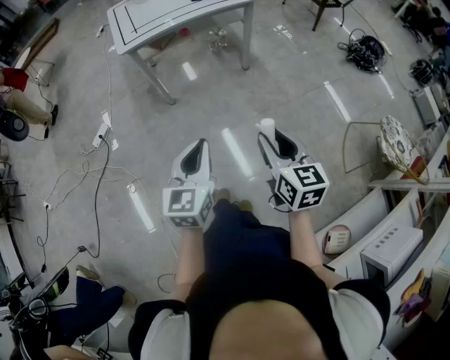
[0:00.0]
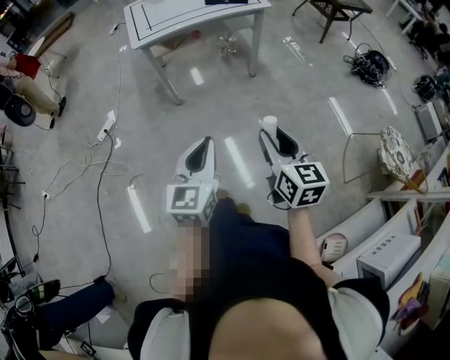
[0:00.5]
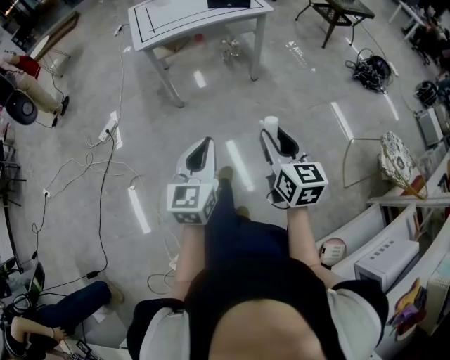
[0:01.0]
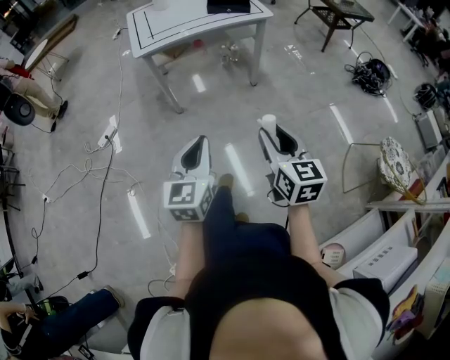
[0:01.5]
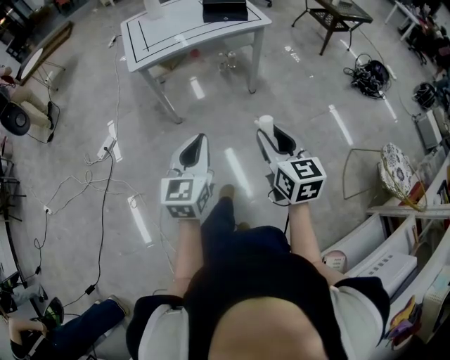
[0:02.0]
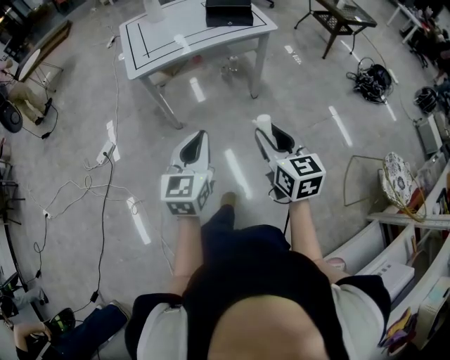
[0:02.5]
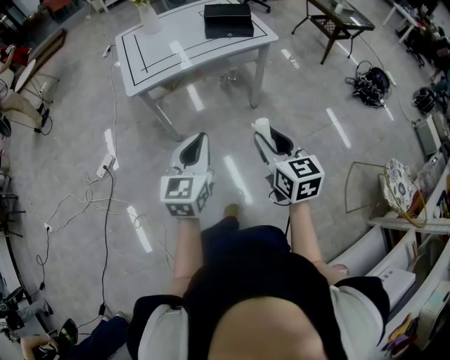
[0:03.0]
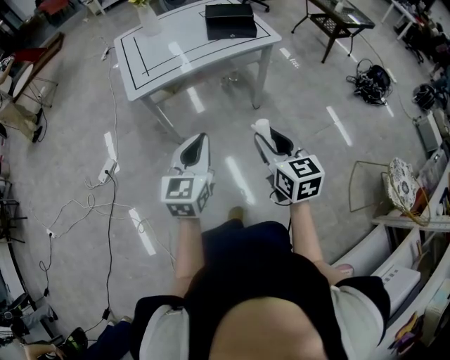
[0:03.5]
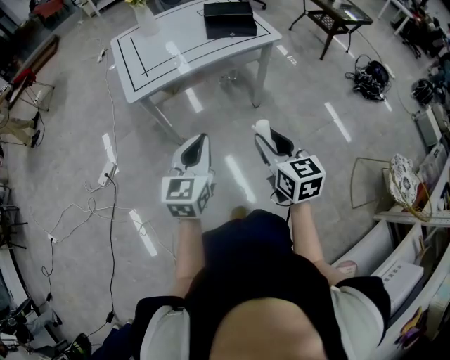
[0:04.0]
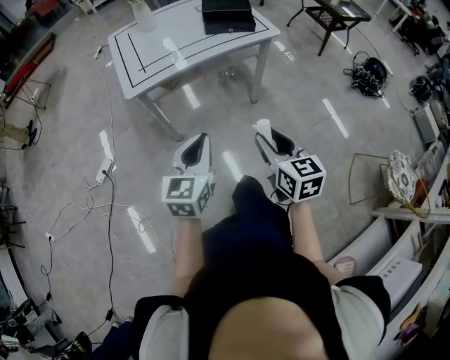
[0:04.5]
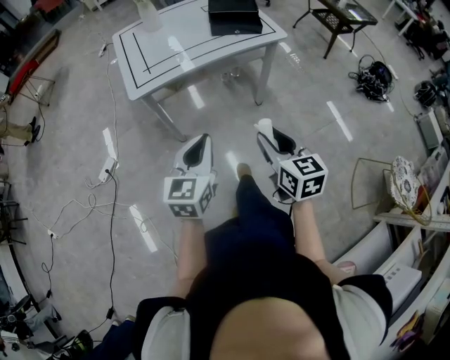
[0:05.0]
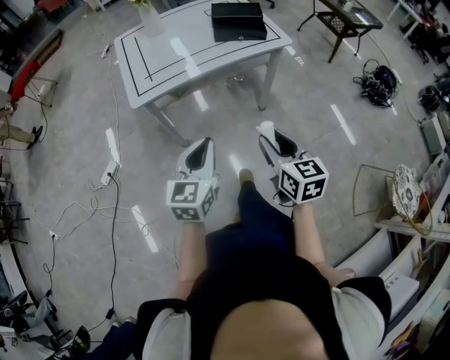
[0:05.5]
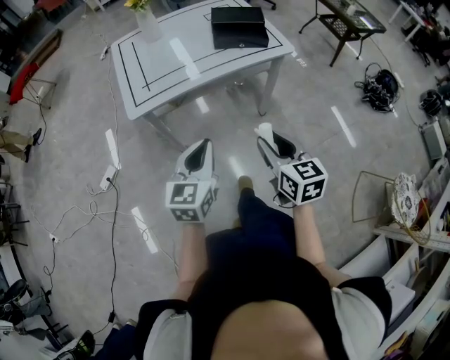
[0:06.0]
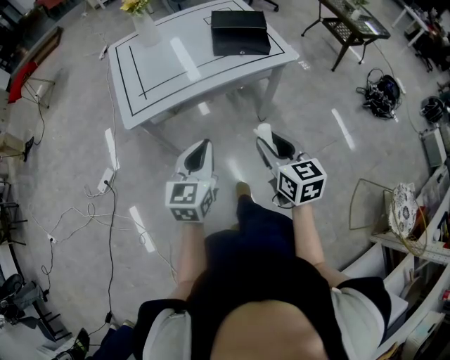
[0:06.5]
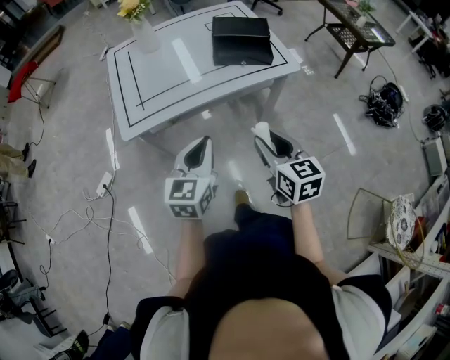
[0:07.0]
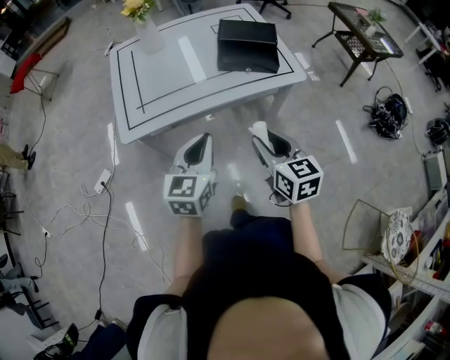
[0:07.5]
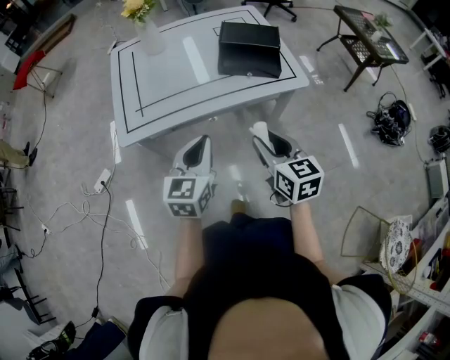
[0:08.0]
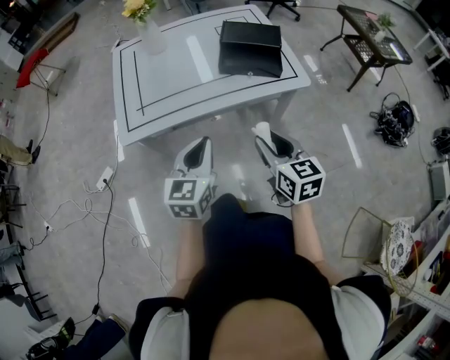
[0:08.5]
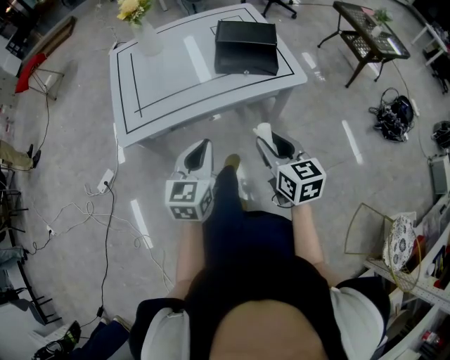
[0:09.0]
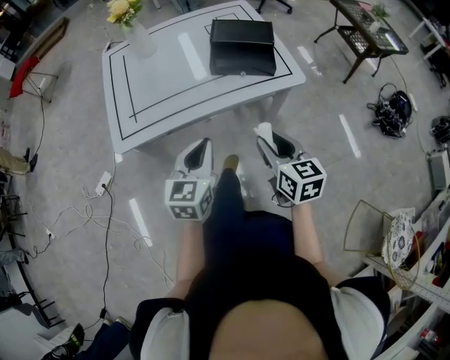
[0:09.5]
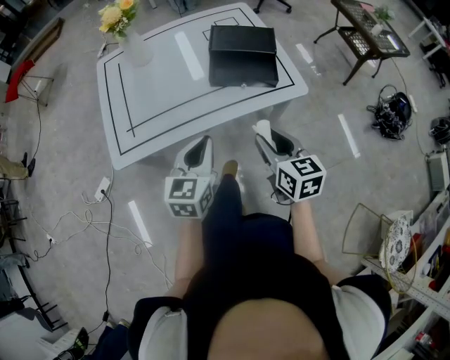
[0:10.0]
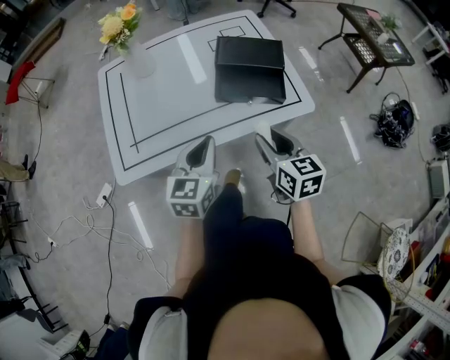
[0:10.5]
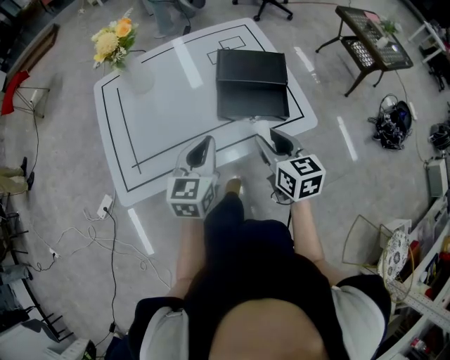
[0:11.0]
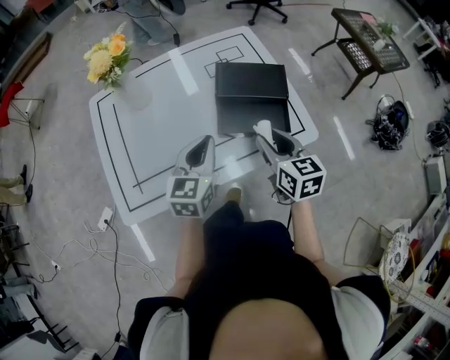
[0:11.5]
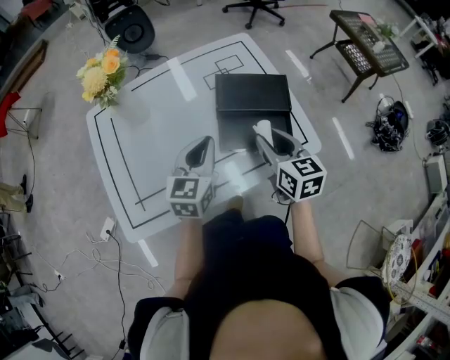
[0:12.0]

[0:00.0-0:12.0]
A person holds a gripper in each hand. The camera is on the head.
0:00.0 to 0:02.0: The grippers both shift forward by approximately 10 cm.
0:02.0 to 0:04.0: Both grippers travel together forward, approximately 20 cm.
0:04.0 to 0:06.0: Both grippers travel together forward, roughly 10 cm.
0:06.0 to 0:08.0: The grippers both shift forward by roughly 15 cm.
0:08.0 to 0:10.0: Both grippers move forward, approximately 10 cm.
0:10.0 to 0:12.0: The two grippers go about 25 cm forward.

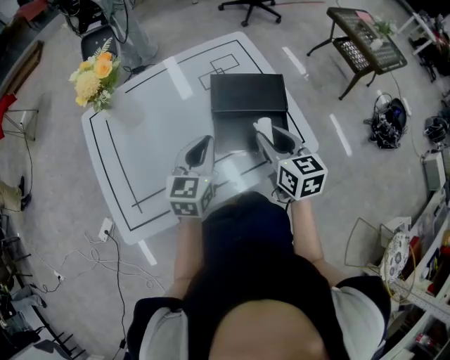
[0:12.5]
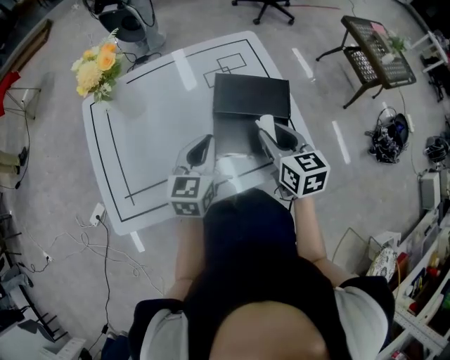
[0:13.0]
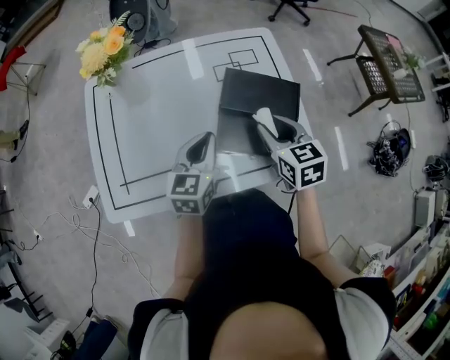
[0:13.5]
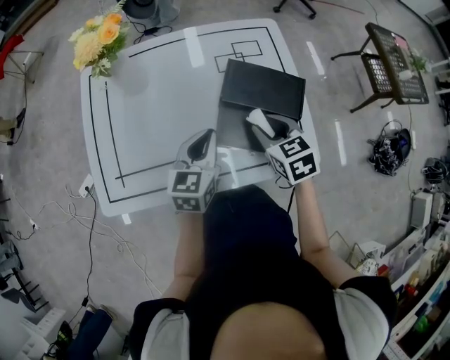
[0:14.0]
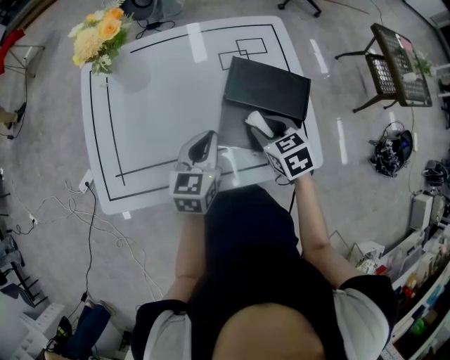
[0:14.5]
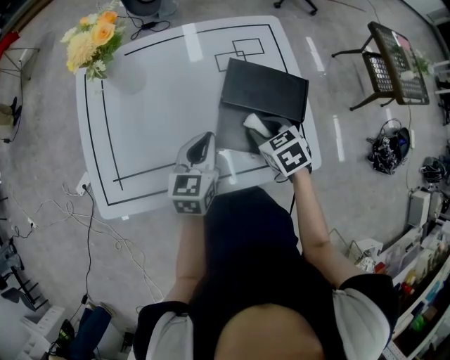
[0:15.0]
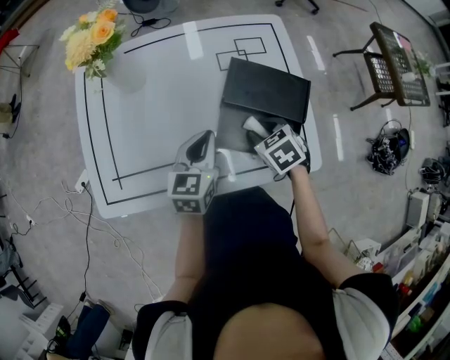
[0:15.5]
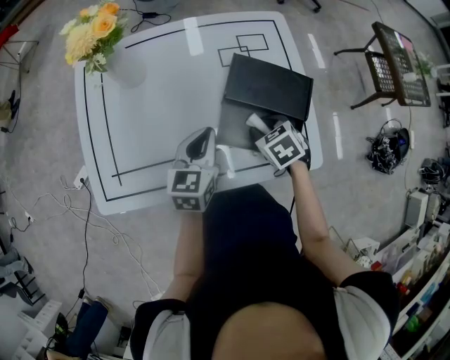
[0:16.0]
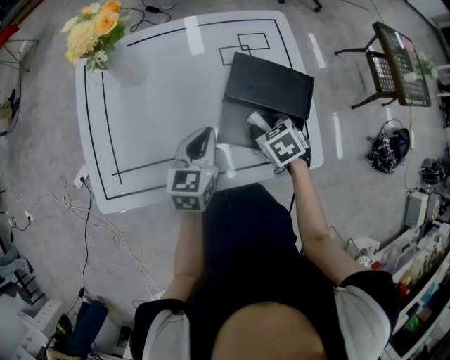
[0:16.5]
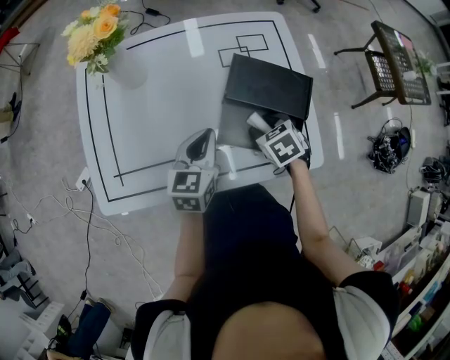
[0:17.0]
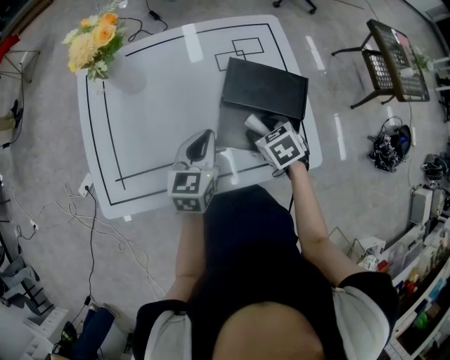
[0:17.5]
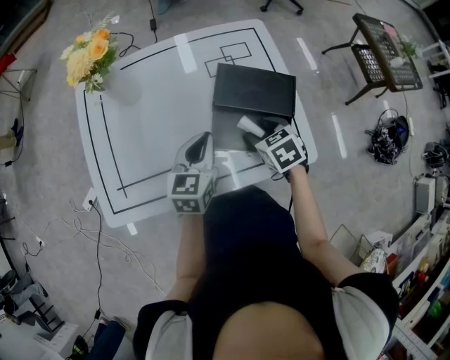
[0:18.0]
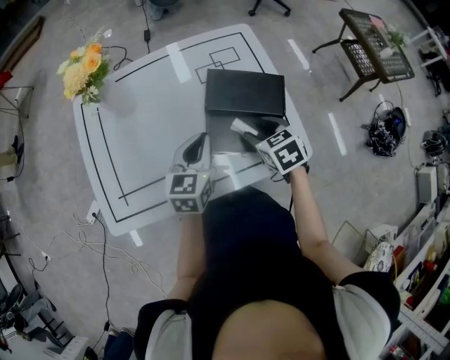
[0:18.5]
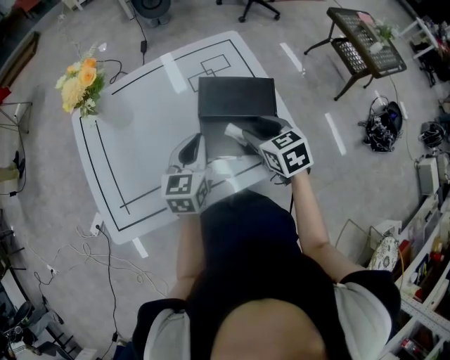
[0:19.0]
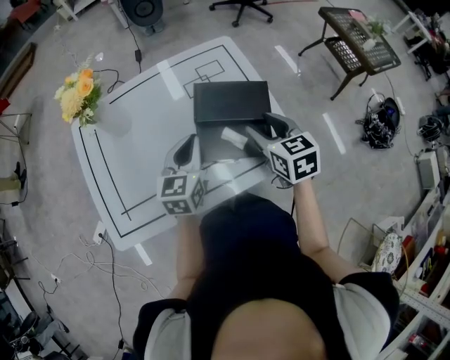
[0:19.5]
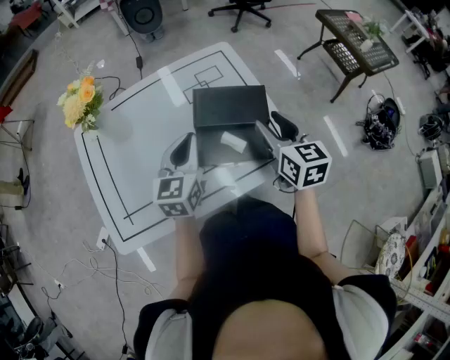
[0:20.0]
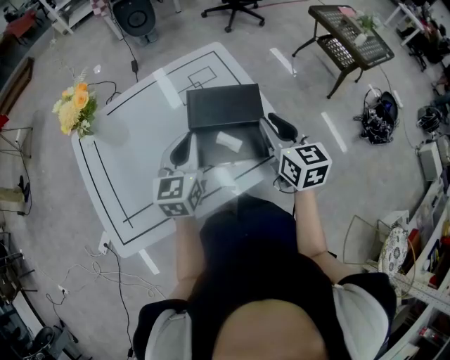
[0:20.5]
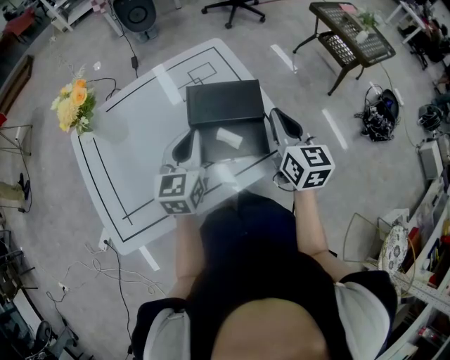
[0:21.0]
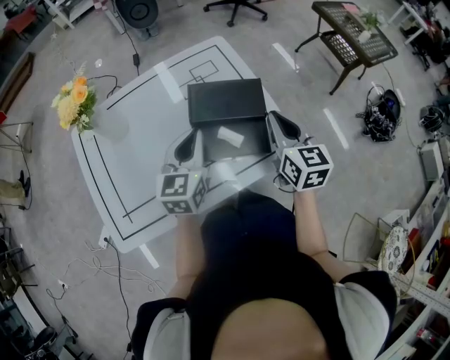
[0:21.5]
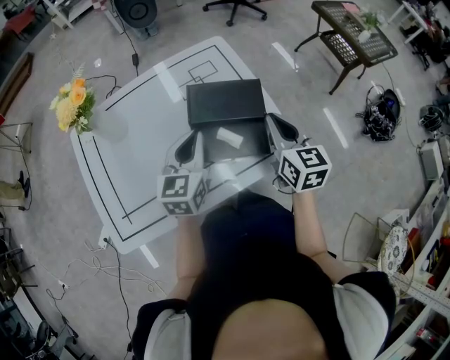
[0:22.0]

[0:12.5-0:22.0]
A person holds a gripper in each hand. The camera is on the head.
0:12.5 to 0:14.5: The left gripper heads downward, covering some 5 cm, while the right gripper shifts approximately 10 cm downward, and swivels about 40 degrees.
0:14.5 to 0:16.5: The right gripper moves downward, about 5 cm.
0:16.5 to 0:18.0: The right gripper opens up.
0:18.0 to 0:20.0: The right gripper goes some 20 cm upward and to the right, and tips its fingers upward by some 30 degrees. The left gripper travels upward by approximately 5 cm.
0:20.0 to 0:22.0: The right gripper closes up.

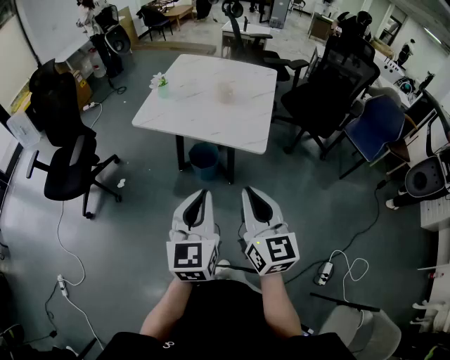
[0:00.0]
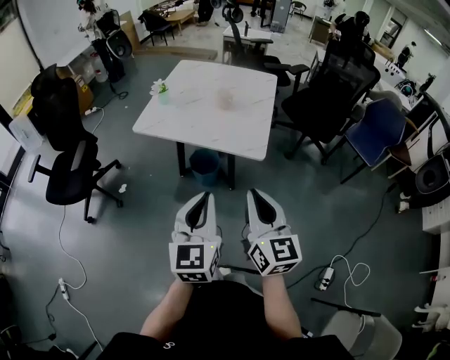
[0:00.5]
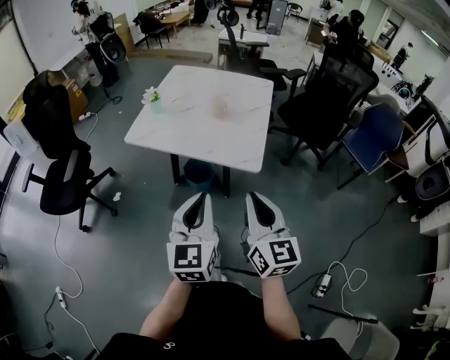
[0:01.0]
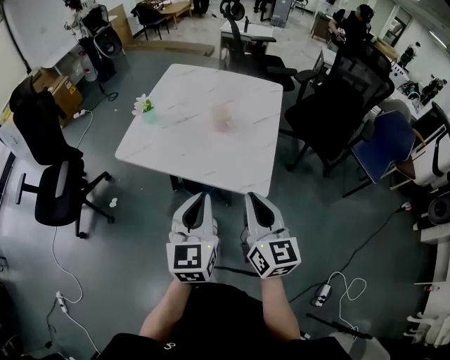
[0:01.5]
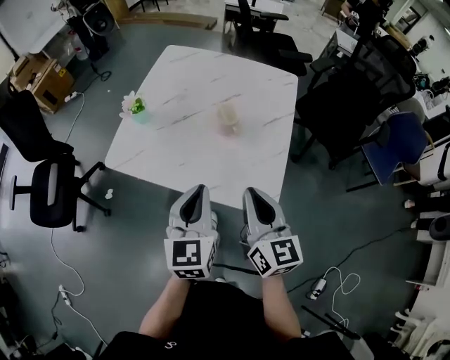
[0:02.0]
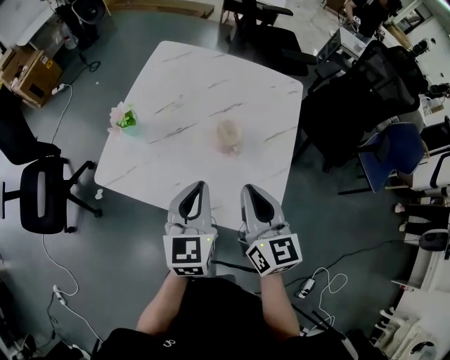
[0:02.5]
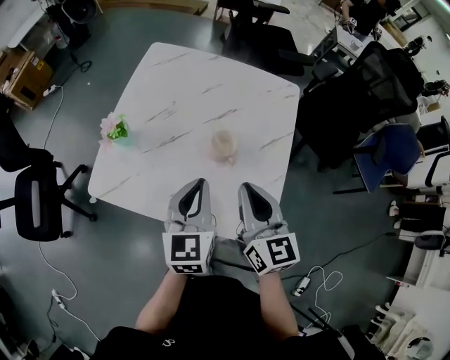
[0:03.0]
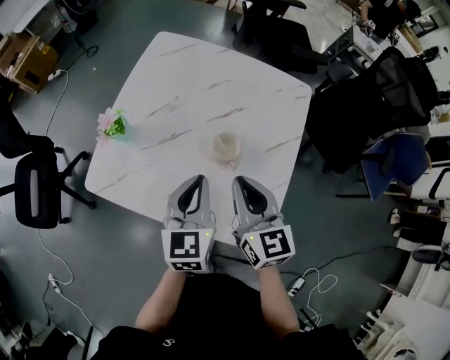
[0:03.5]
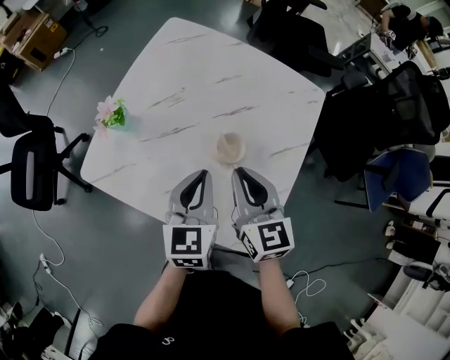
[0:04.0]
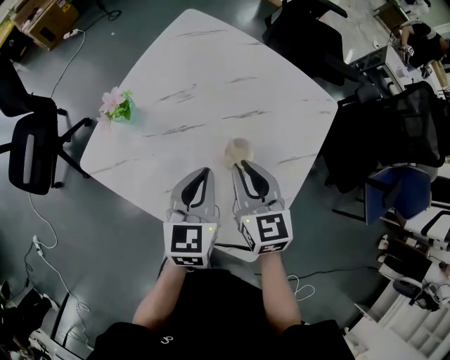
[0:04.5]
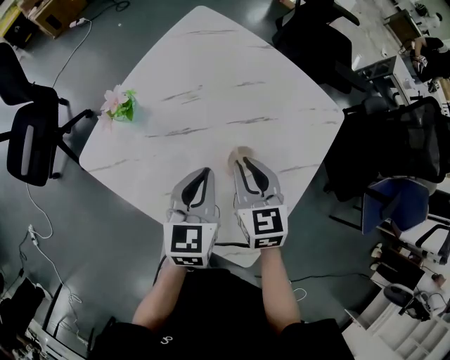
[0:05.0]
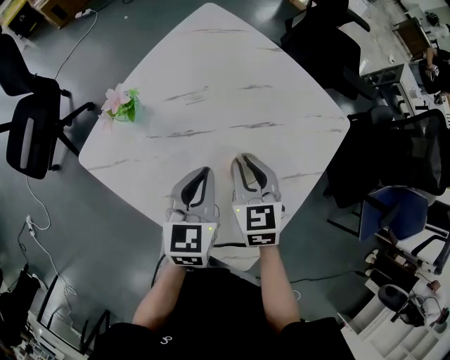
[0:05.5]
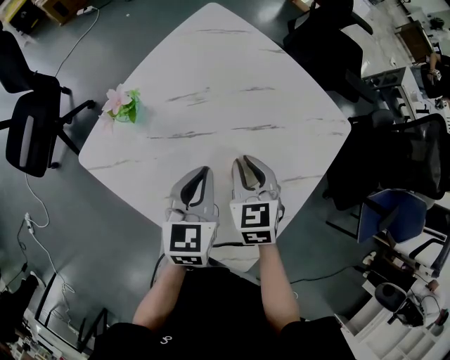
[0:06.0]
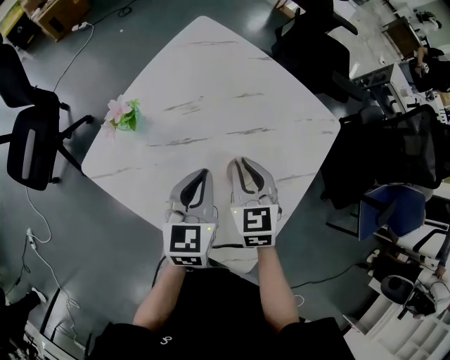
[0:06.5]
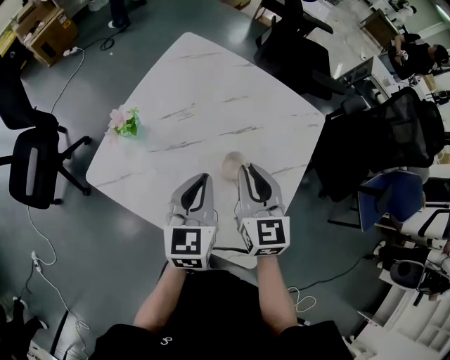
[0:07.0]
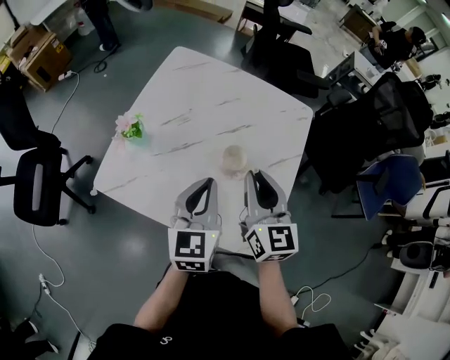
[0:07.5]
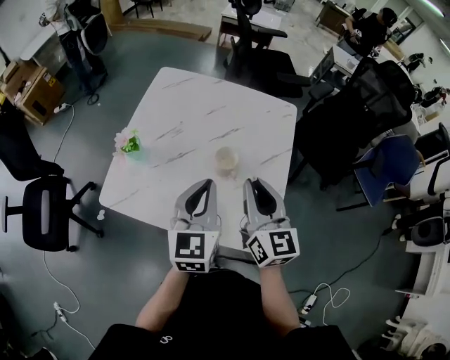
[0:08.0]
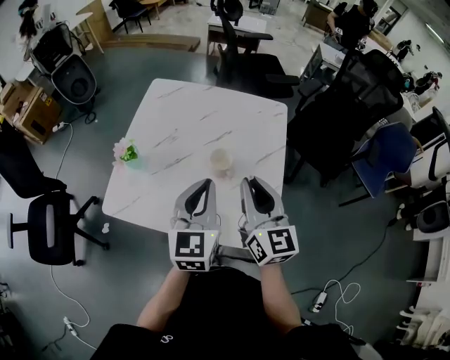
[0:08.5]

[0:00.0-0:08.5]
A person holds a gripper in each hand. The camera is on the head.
0:00.0 to 0:02.0: Both grippers move forward, some 35 cm.
0:02.0 to 0:04.0: Both grippers travel together forward, some 20 cm.
0:04.0 to 0:06.5: The right gripper moves forward and downward, roughly 10 cm, and changes its angle by about 20 degrees. The left gripper goes approximately 5 cm forward.
0:06.5 to 0:08.5: The grippers both shift upward and backward by some 20 cm. The right gripper points its fingers about 30 degrees further upward; the left gripper swivels approximately 30 degrees.
